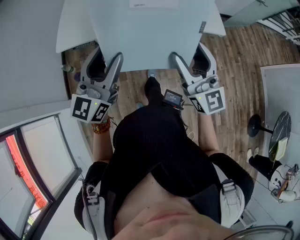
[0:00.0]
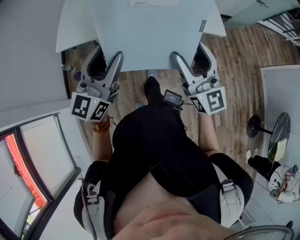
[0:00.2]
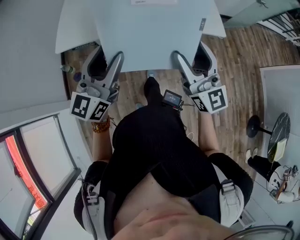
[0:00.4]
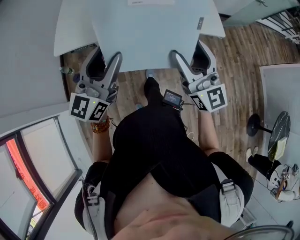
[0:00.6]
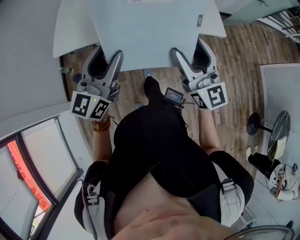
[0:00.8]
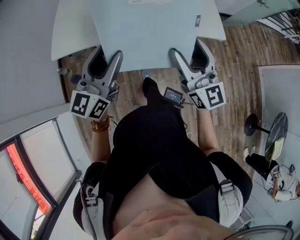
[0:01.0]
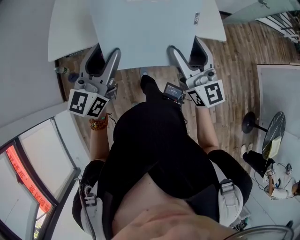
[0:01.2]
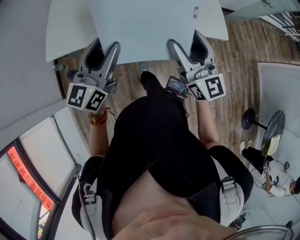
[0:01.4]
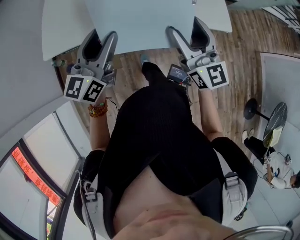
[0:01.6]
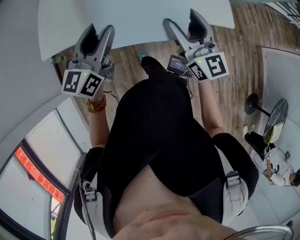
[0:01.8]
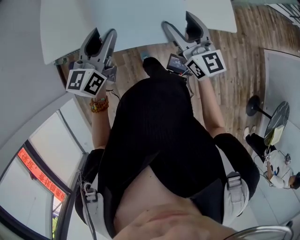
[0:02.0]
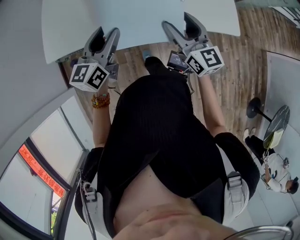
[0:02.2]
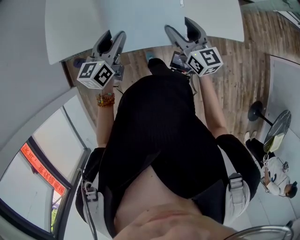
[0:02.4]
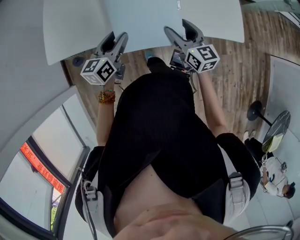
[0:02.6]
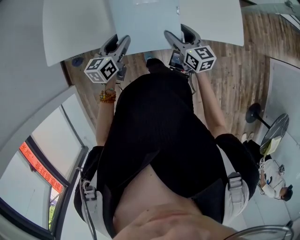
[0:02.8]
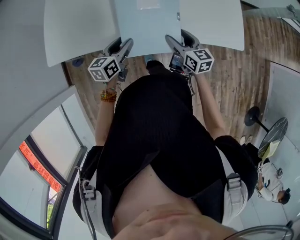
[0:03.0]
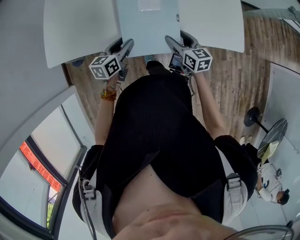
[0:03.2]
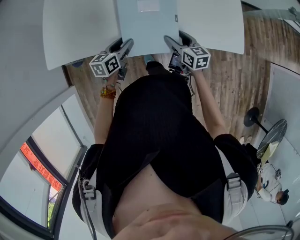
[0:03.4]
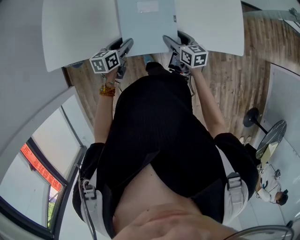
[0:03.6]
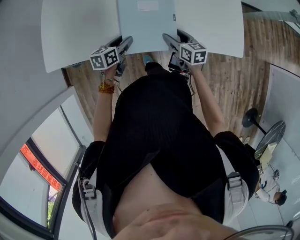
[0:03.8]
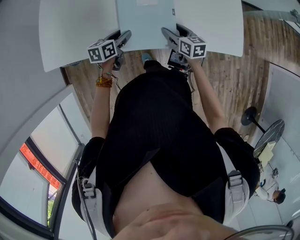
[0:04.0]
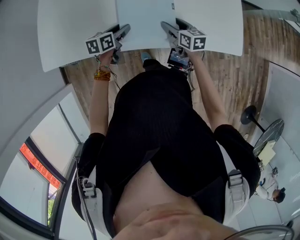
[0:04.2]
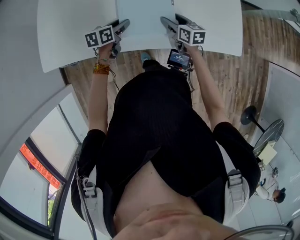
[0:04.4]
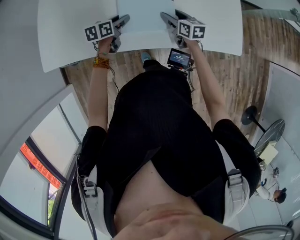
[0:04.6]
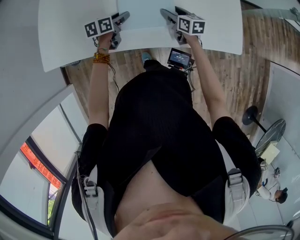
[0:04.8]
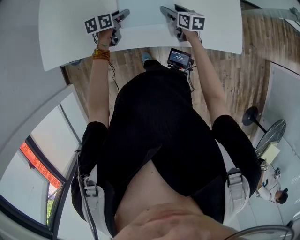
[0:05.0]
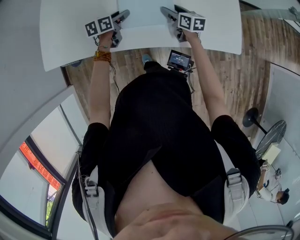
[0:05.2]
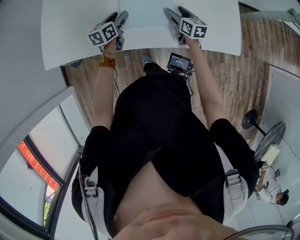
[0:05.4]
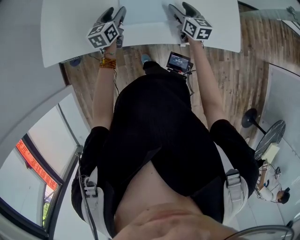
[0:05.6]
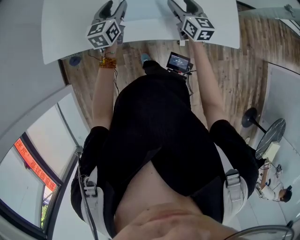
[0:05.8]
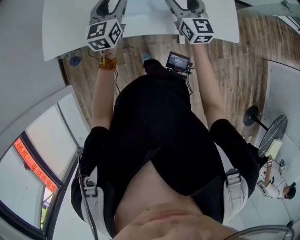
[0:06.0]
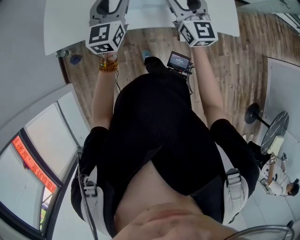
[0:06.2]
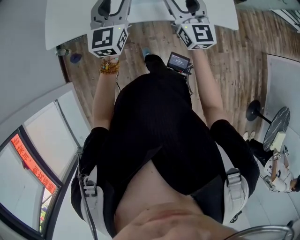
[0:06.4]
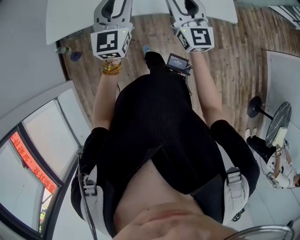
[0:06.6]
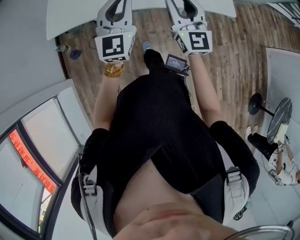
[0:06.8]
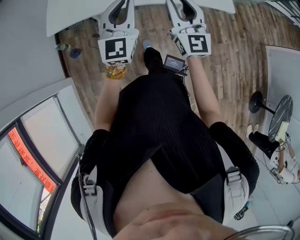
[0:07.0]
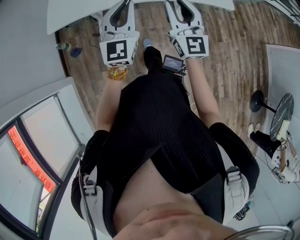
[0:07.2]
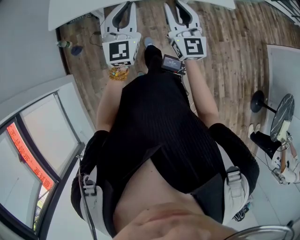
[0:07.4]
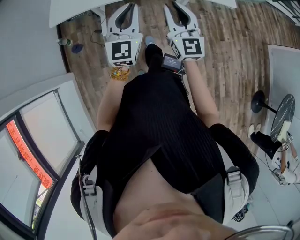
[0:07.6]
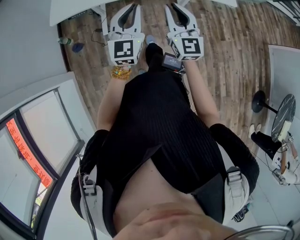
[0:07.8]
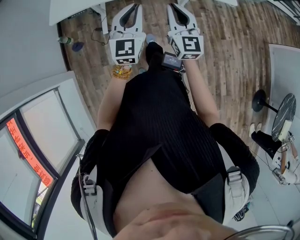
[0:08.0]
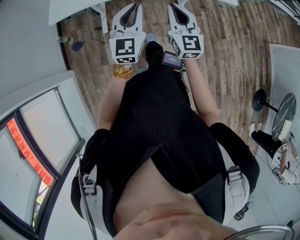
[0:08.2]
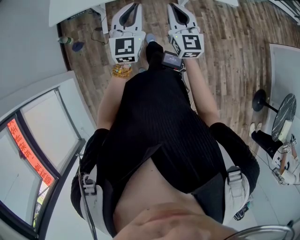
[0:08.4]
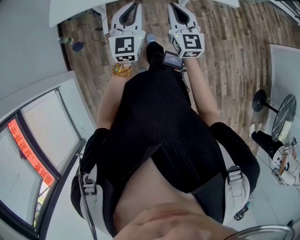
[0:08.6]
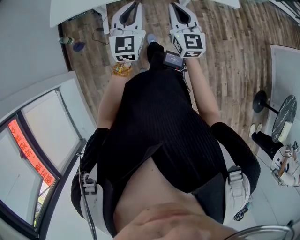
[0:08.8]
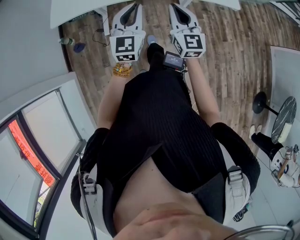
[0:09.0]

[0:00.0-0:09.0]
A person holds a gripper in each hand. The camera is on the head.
0:00.0 to 0:01.6: Both grippers move forward, about 15 cm.
0:01.6 to 0:03.0: Both grippers move downward and forward, roughly 25 cm. The left gripper swivels some 30 degrees; the right gripper angles its fingers downward, by roughly 30 degrees.
0:03.0 to 0:04.4: The two grippers go approximately 15 cm forward and downward.
0:04.4 to 0:06.0: Both grippers travel together upward, approximately 20 cm. The left gripper tilts its fingers about 30 degrees upward. The right gripper tips its fingers upward by approximately 30 degrees.
0:06.0 to 0:07.6: The two grippers go about 30 cm backward. The left gripper closes up. Meanwhile the right gripper closes.
0:07.6 to 0:09.0: The right gripper shifts by approximately 5 cm. The left gripper moves approximately 5 cm.

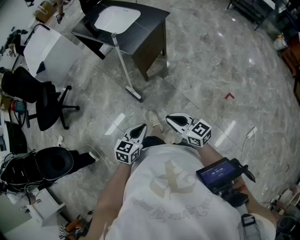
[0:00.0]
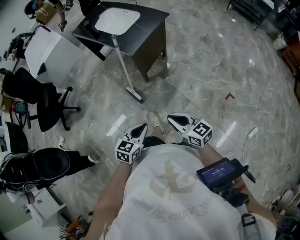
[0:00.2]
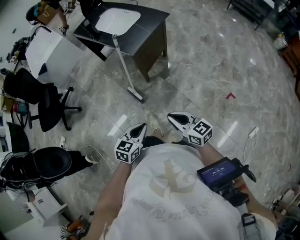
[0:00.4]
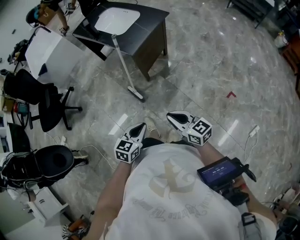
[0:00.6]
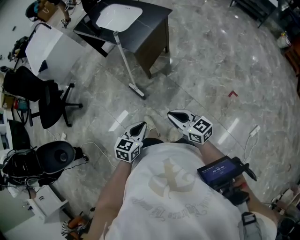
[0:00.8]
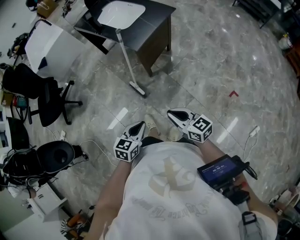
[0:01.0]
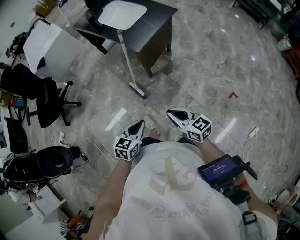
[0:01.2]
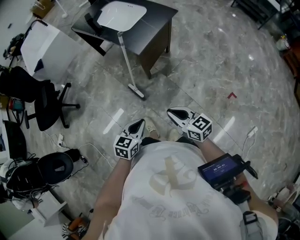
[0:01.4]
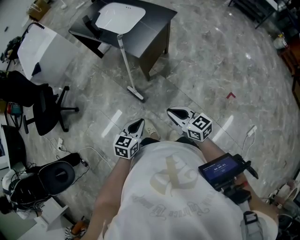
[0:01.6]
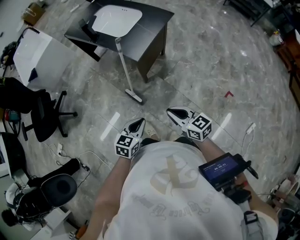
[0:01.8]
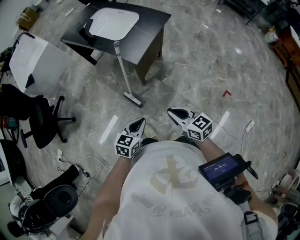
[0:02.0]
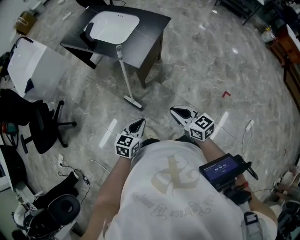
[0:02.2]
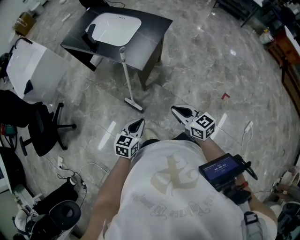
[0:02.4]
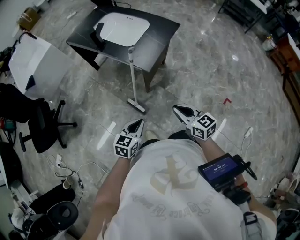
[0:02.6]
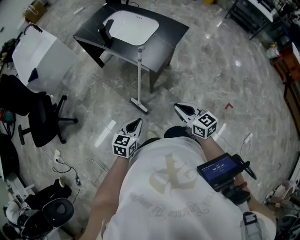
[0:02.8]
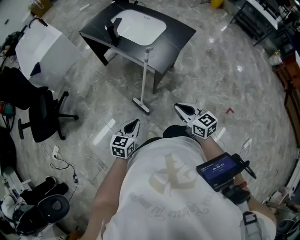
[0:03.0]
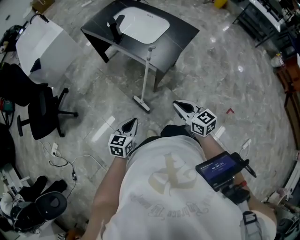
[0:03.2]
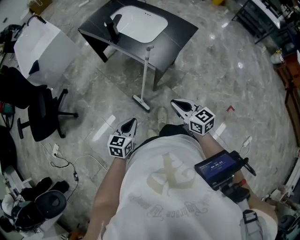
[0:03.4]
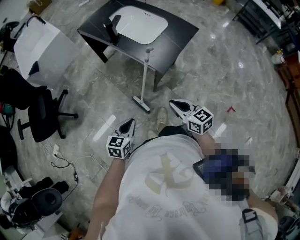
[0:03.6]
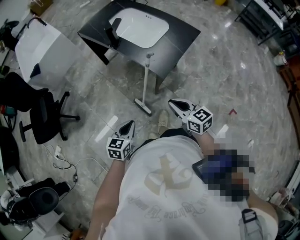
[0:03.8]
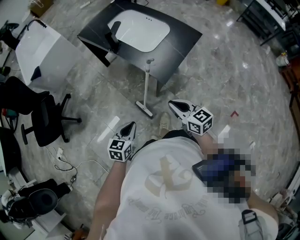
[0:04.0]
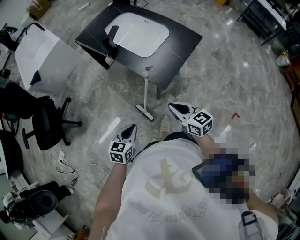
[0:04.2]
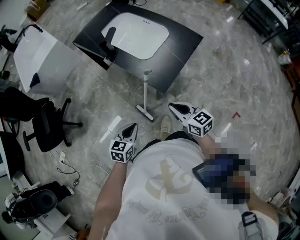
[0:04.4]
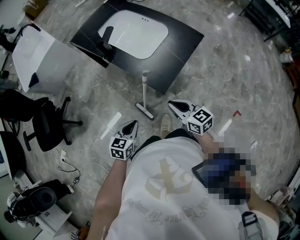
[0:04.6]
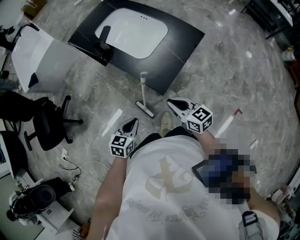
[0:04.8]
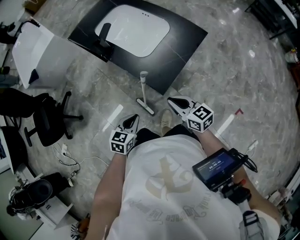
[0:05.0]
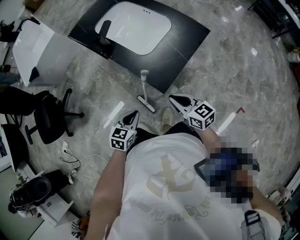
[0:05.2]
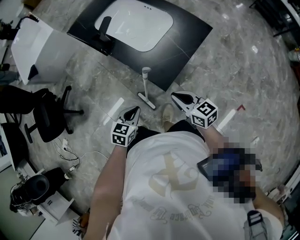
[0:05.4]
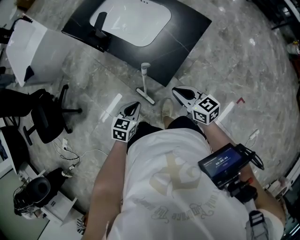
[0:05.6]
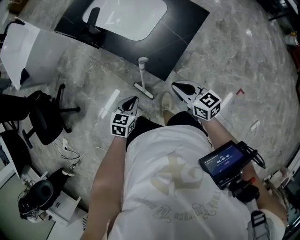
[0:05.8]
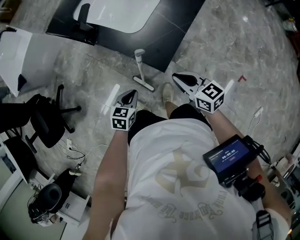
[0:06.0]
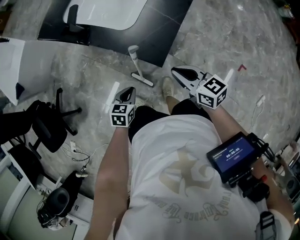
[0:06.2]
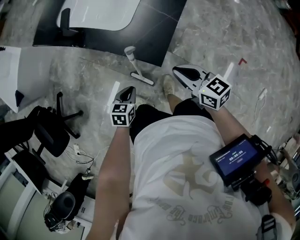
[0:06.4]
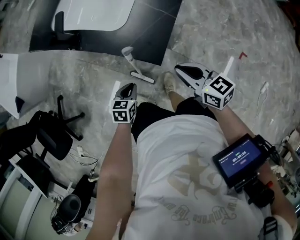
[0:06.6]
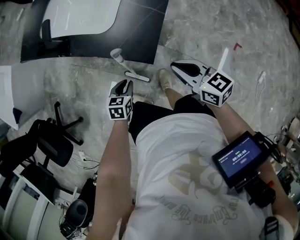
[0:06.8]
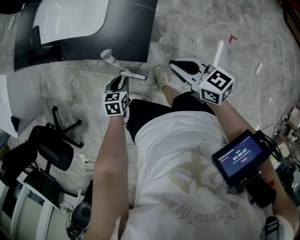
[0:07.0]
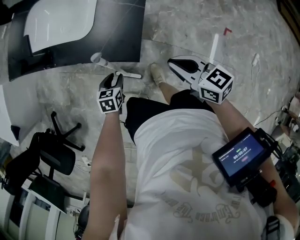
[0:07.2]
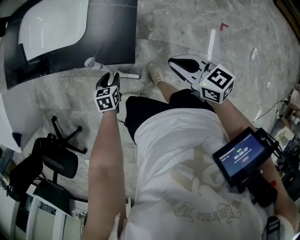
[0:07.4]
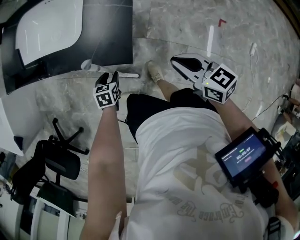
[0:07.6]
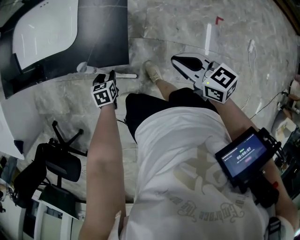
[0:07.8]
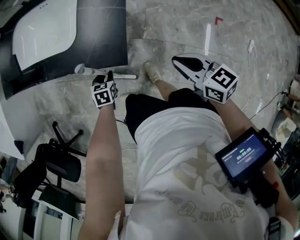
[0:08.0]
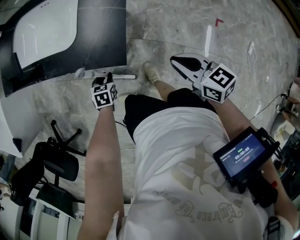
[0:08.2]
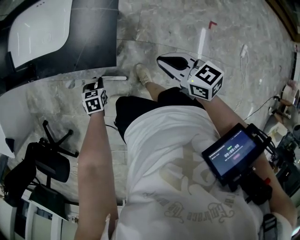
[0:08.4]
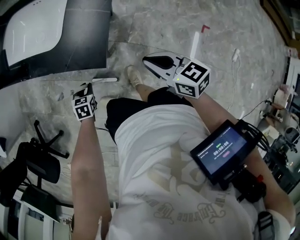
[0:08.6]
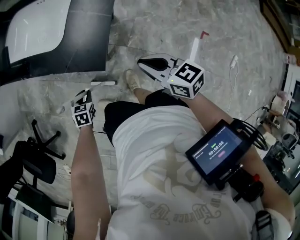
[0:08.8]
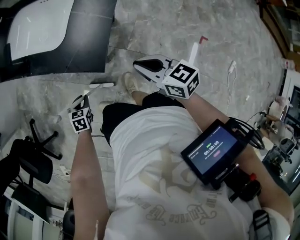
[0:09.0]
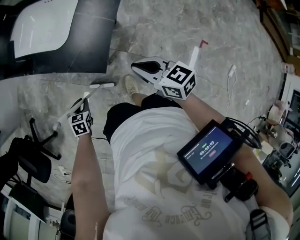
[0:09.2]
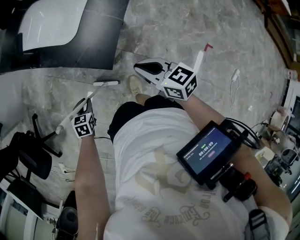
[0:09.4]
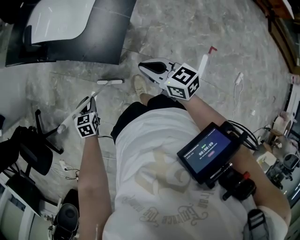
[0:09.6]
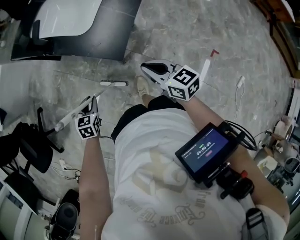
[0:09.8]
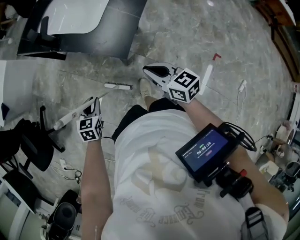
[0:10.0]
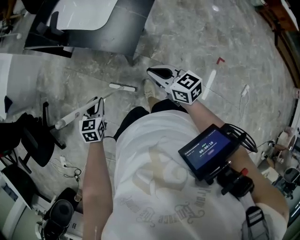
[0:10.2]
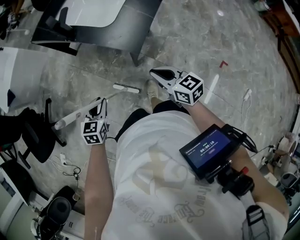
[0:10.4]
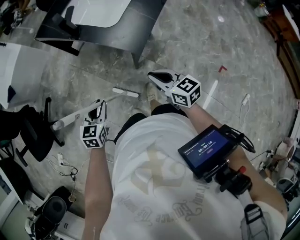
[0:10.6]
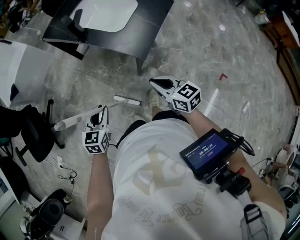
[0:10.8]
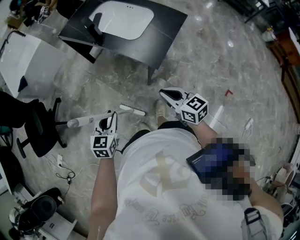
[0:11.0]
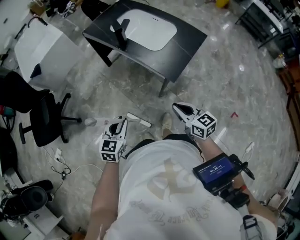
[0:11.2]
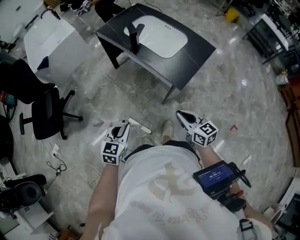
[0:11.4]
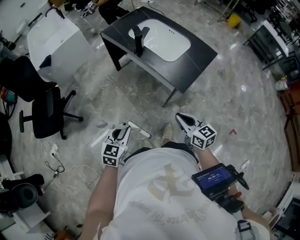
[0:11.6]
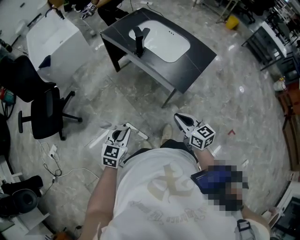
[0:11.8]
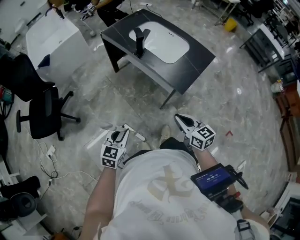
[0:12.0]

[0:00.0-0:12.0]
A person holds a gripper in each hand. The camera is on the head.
0:00.0 to 0:01.6: The right gripper shifts roughly 10 cm forward, while the left gripper is displaced forward and to the left by some 10 cm.
0:01.6 to 0:03.0: The right gripper moves forward and to the left, some 15 cm. Meanwhile the left gripper moves to the left and forward, about 15 cm.
0:03.0 to 0:04.4: Both grippers travel together forward, approximately 10 cm.
0:04.4 to 0:06.0: The left gripper heads forward and downward, covering approximately 15 cm. Meanwhile the right gripper goes about 5 cm forward.
0:06.0 to 0:07.6: The right gripper goes approximately 10 cm to the right, and changes its angle by approximately 20 degrees. Meanwhile the left gripper is displaced downward and forward by roughly 15 cm, and opens up.
0:07.6 to 0:09.0: The left gripper moves backward and to the left, approximately 10 cm.
0:09.0 to 0:10.4: The left gripper travels upward and backward by some 20 cm, and rotates some 20 degrees; the right gripper travels to the left and backward by some 10 cm.
0:10.4 to 0:12.0: The right gripper moves to the left and upward, about 10 cm; the left gripper is displaced to the left, backward and upward by some 15 cm.

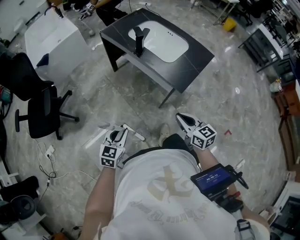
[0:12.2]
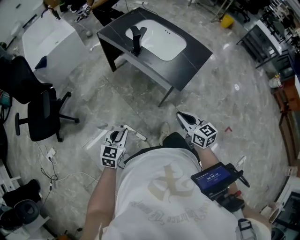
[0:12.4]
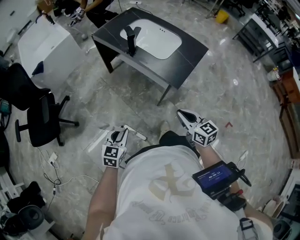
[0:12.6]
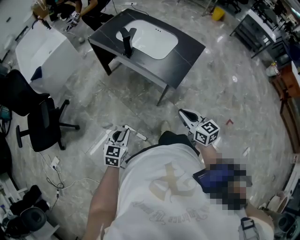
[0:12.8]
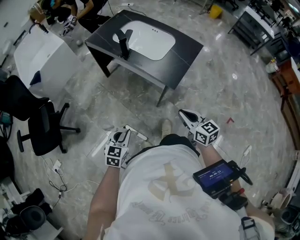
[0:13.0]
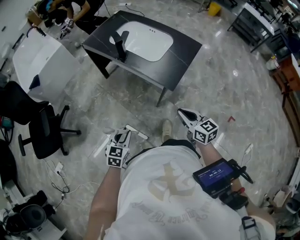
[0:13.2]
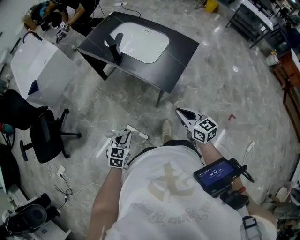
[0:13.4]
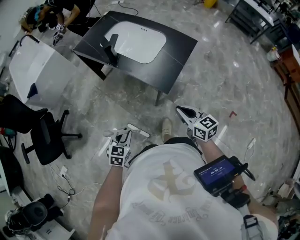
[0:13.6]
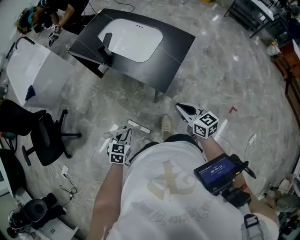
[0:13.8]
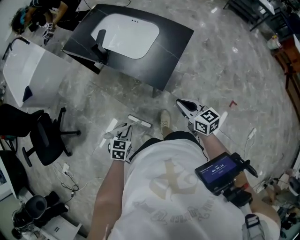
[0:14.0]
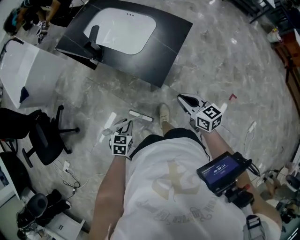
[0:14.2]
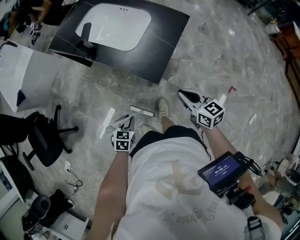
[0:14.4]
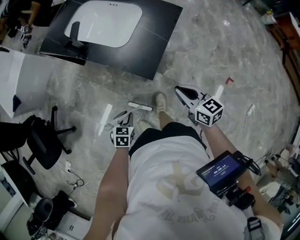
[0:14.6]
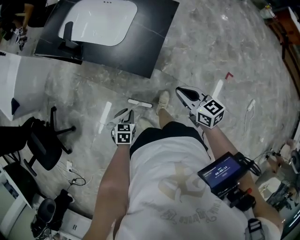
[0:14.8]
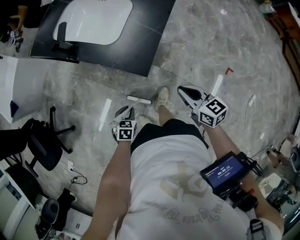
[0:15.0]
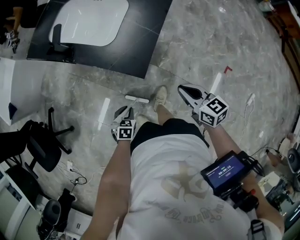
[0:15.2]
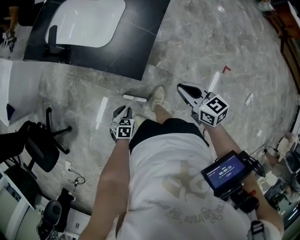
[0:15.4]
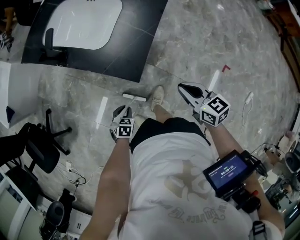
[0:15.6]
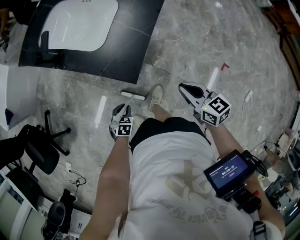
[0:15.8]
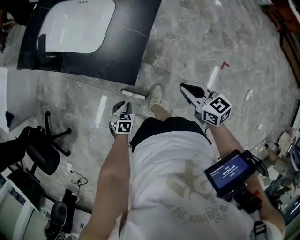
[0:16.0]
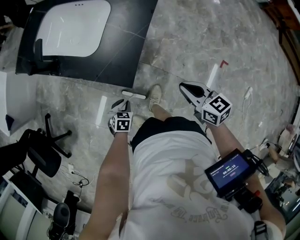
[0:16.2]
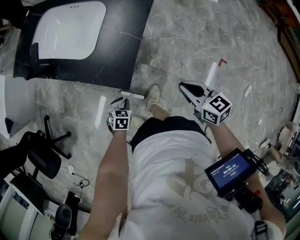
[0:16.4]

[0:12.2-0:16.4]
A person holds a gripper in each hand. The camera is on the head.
0:12.2 to 0:13.6: The right gripper travels to the right by approximately 10 cm. The left gripper goes about 10 cm to the right, downward and forward.
0:13.6 to 0:15.0: The left gripper goes some 15 cm downward and to the right; the right gripper is displaced to the right and downward by roughly 10 cm.
0:15.0 to 0:16.4: The left gripper moves downward, forward and to the right, some 10 cm; the right gripper heads to the right, covering some 5 cm.
